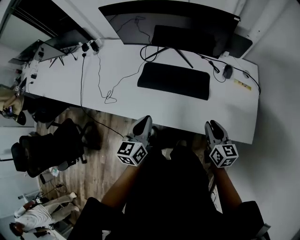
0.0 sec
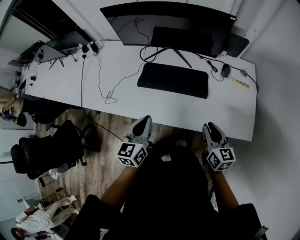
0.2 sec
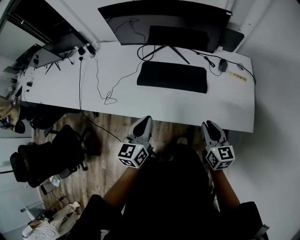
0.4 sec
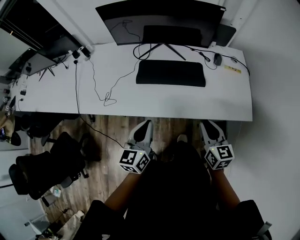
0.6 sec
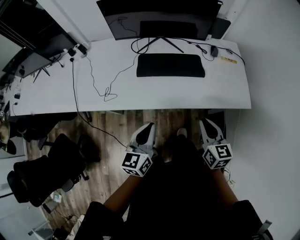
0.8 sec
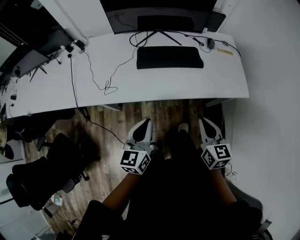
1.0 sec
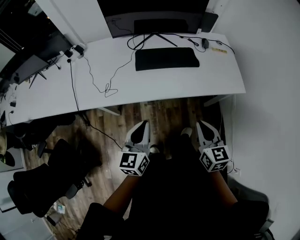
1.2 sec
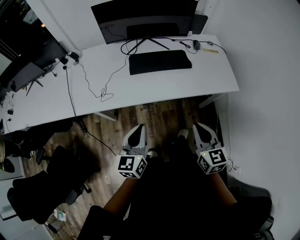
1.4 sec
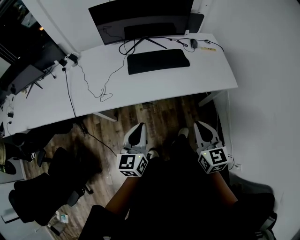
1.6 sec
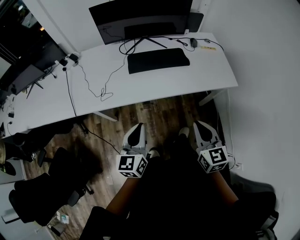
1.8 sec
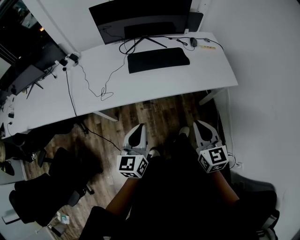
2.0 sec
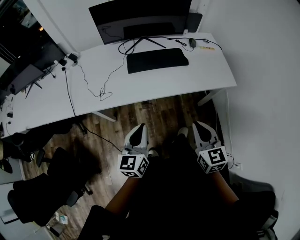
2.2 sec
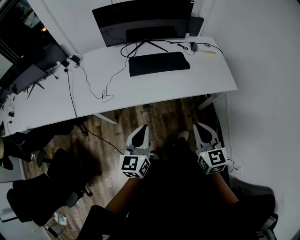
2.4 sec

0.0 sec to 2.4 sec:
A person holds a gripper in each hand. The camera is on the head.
0.0 sec to 1.2 sec: The grippers both shift backward and to the left by approximately 30 cm.
1.2 sec to 2.4 sec: The right gripper goes roughly 5 cm backward.

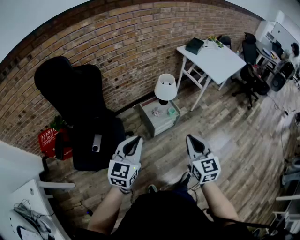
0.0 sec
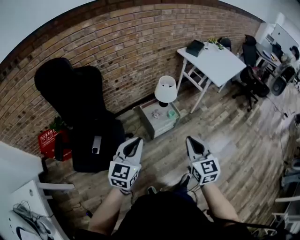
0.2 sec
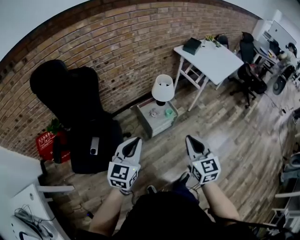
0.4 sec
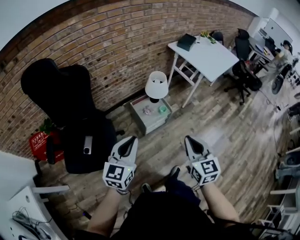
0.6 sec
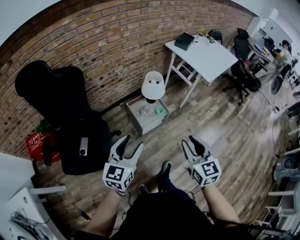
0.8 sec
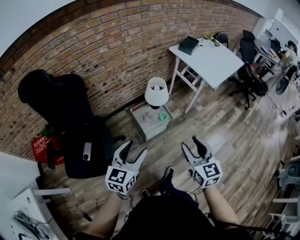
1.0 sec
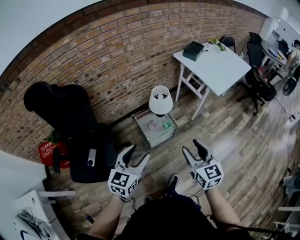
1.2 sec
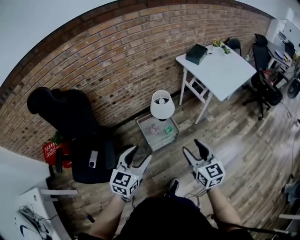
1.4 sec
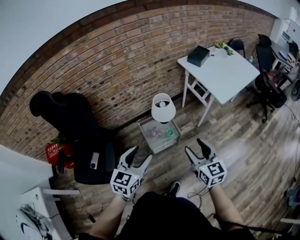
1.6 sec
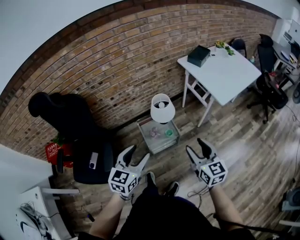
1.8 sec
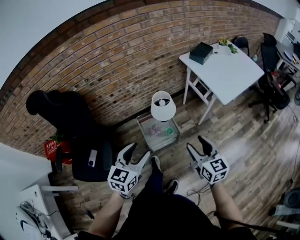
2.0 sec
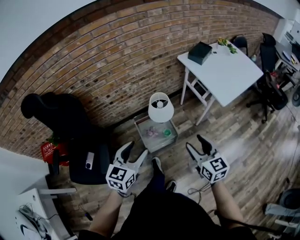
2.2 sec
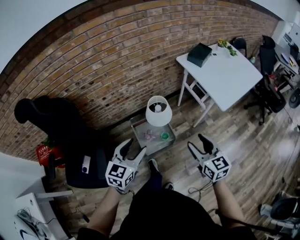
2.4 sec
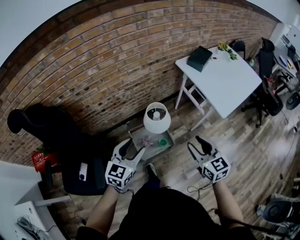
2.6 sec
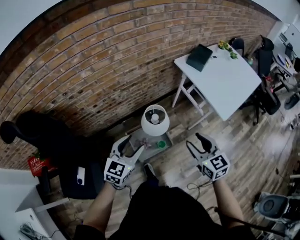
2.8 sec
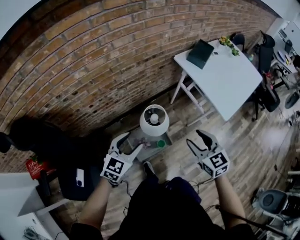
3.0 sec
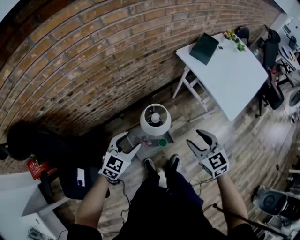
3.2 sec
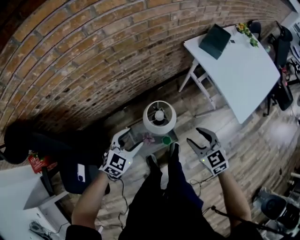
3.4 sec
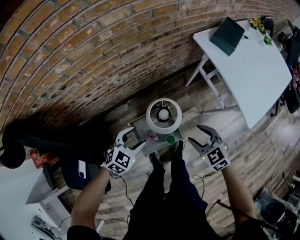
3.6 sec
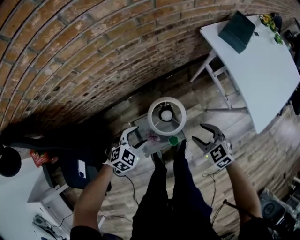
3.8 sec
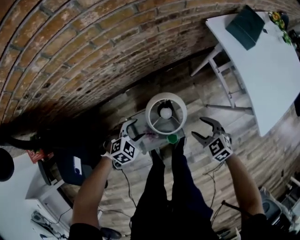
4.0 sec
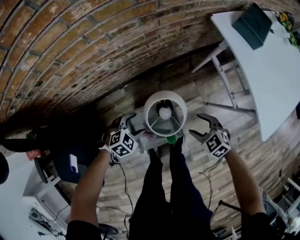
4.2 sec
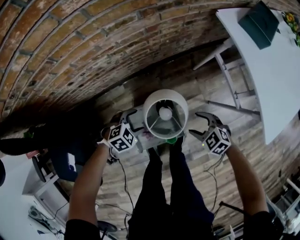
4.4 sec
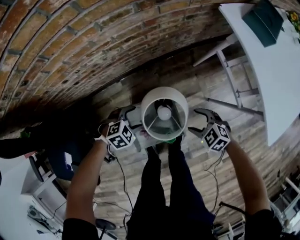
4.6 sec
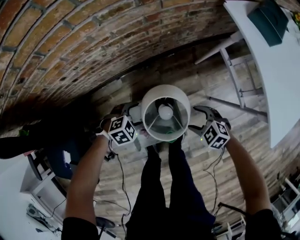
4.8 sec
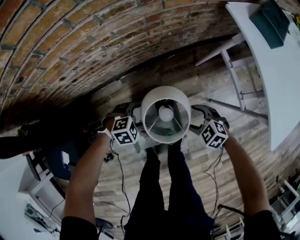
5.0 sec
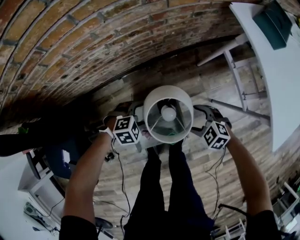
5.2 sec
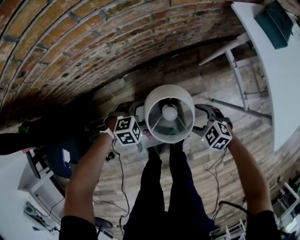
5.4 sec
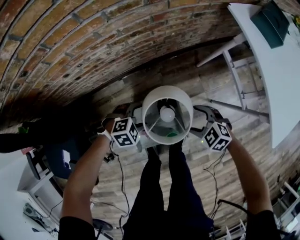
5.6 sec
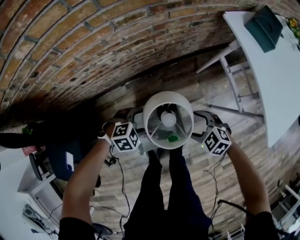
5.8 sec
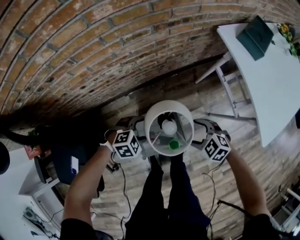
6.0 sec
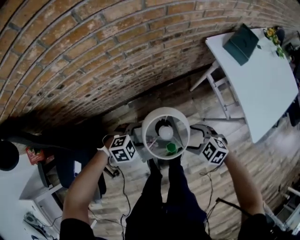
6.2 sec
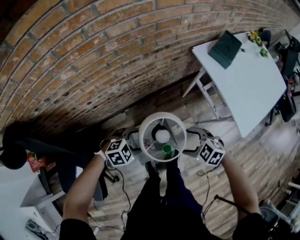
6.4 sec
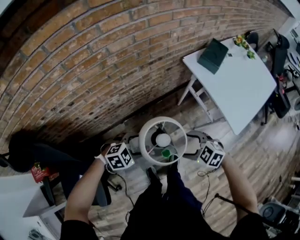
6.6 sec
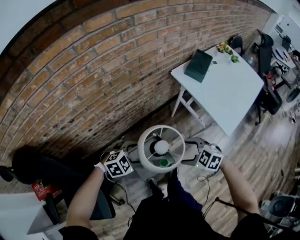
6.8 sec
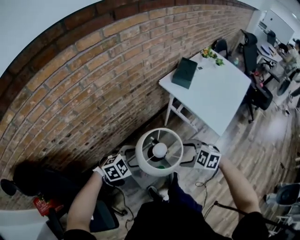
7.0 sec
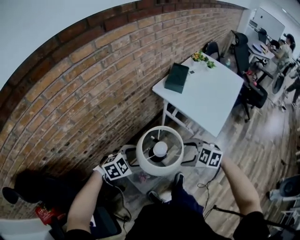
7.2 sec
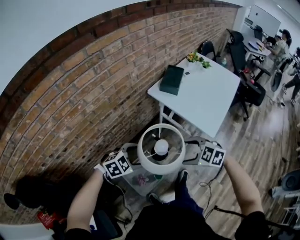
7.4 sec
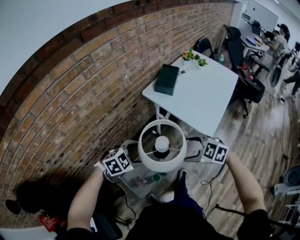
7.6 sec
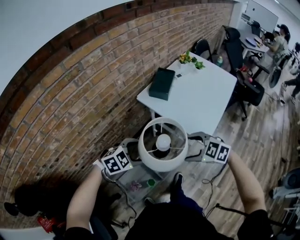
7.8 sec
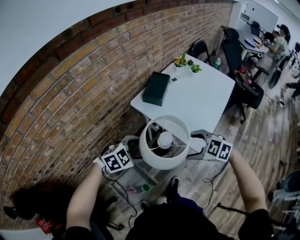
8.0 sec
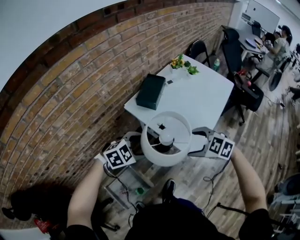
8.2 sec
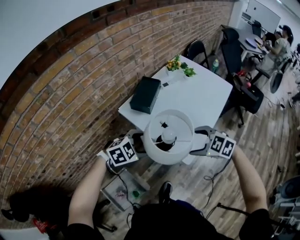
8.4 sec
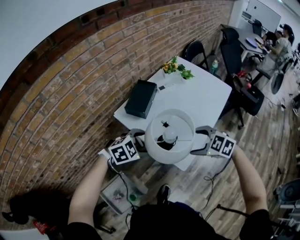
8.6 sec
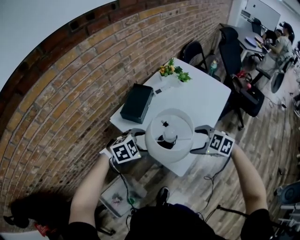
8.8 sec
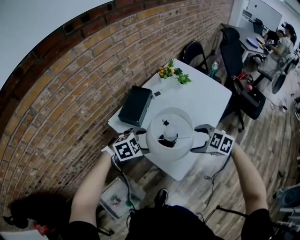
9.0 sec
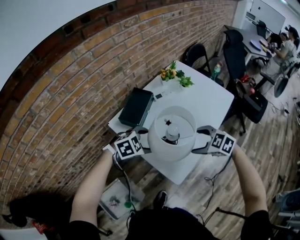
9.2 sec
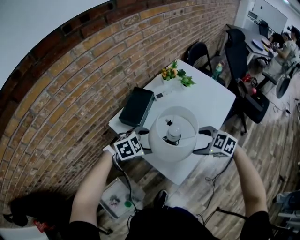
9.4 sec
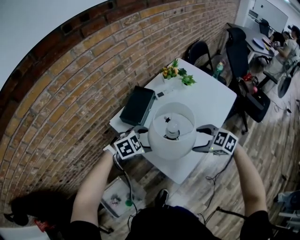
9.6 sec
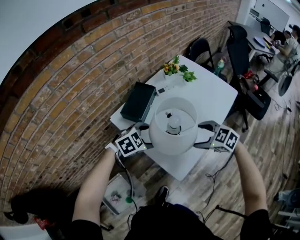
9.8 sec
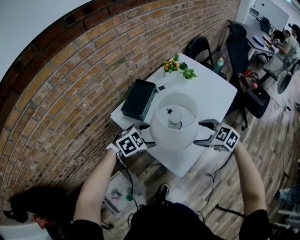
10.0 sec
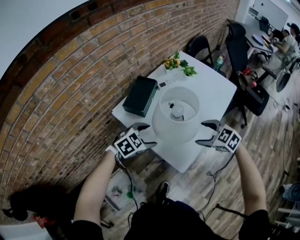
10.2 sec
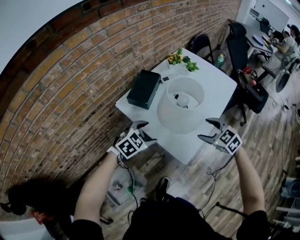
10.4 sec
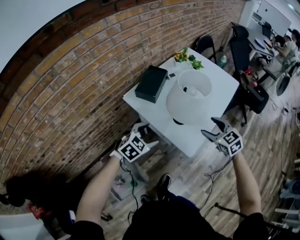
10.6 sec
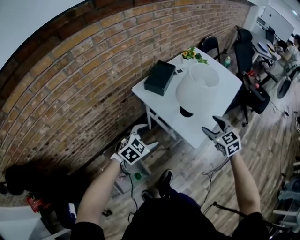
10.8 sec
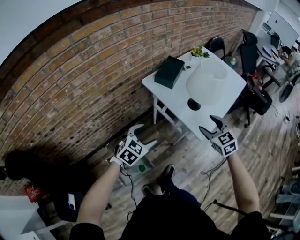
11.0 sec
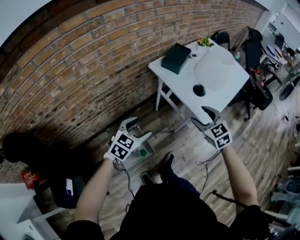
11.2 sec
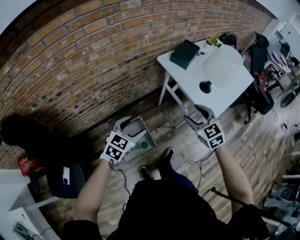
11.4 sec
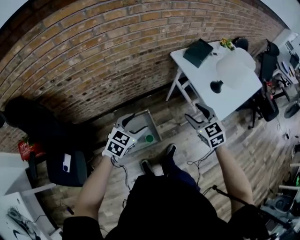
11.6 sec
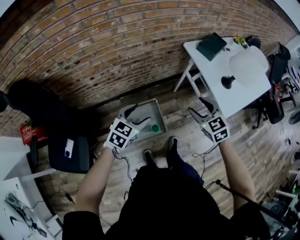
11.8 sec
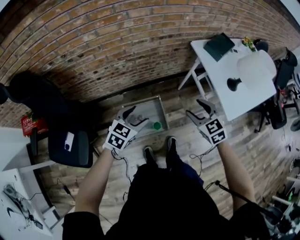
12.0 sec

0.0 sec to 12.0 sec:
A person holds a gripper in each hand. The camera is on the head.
0.0 sec to 1.6 sec: Both grippers travel together forward and to the right, some 25 cm. The right gripper opens. Meanwhile the left gripper opens up.
1.6 sec to 3.0 sec: The grippers both shift forward by approximately 30 cm.
3.0 sec to 4.4 sec: Both grippers travel together downward, some 40 cm. The left gripper tilts its fingers roughly 40 degrees downward. Meanwhile the right gripper changes its angle by some 50 degrees.
4.4 sec to 6.0 sec: Both grippers travel together upward, about 5 cm.
6.0 sec to 7.6 sec: The grippers both shift upward by about 35 cm. The right gripper turns by roughly 20 degrees. Meanwhile the left gripper turns by approximately 20 degrees.
7.6 sec to 9.0 sec: The pair of grippers is taken approximately 40 cm.
9.0 sec to 10.4 sec: The left gripper ends up about 5 cm from where it was.
10.4 sec to 12.0 sec: Both grippers are carried approximately 50 cm. The left gripper rotates roughly 50 degrees.

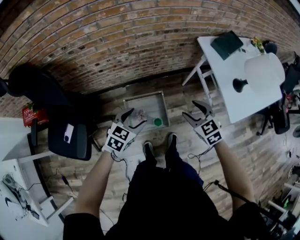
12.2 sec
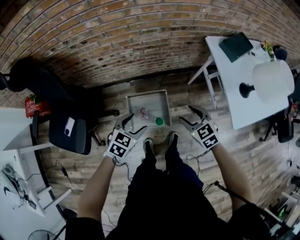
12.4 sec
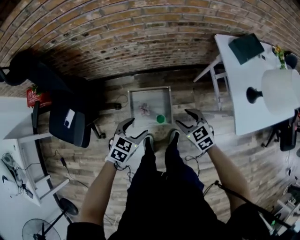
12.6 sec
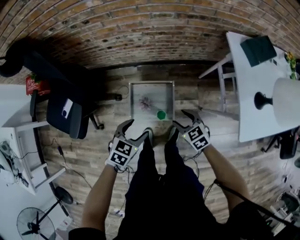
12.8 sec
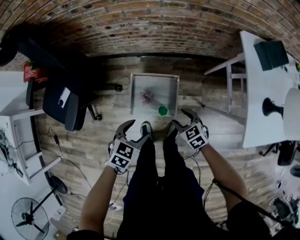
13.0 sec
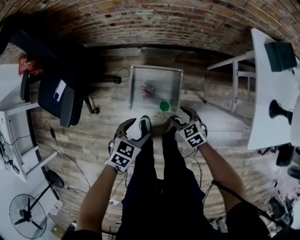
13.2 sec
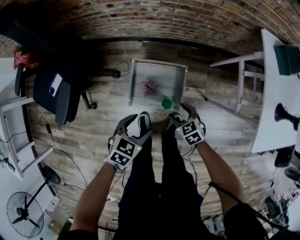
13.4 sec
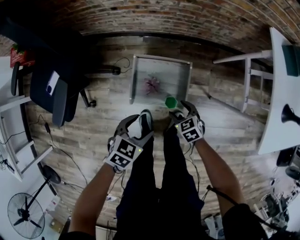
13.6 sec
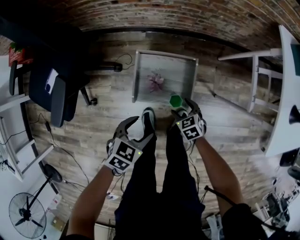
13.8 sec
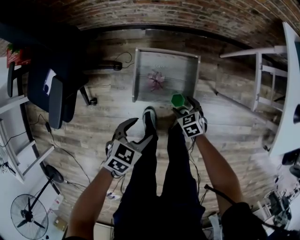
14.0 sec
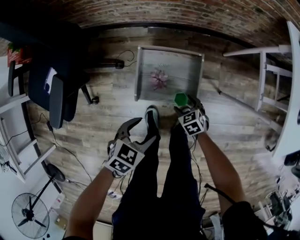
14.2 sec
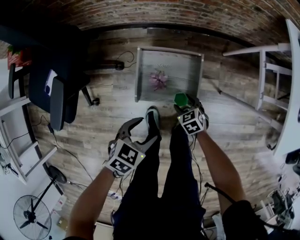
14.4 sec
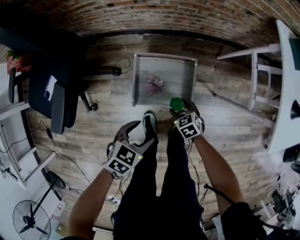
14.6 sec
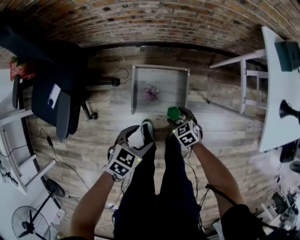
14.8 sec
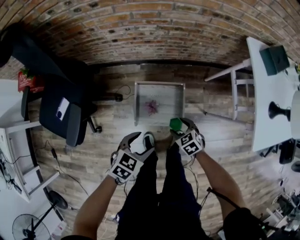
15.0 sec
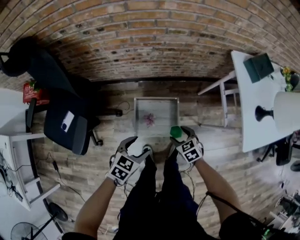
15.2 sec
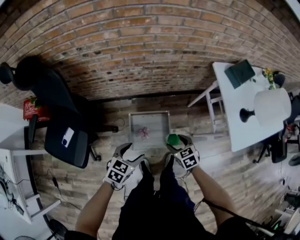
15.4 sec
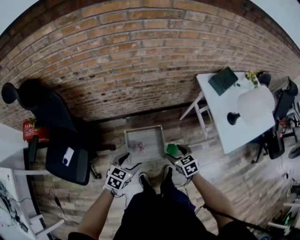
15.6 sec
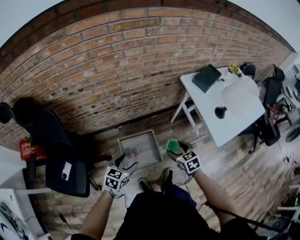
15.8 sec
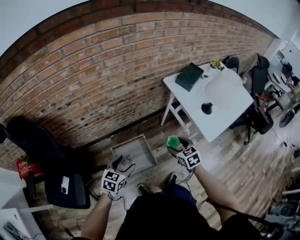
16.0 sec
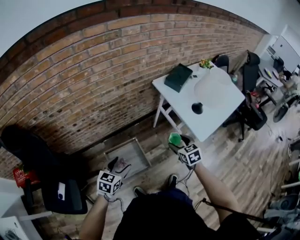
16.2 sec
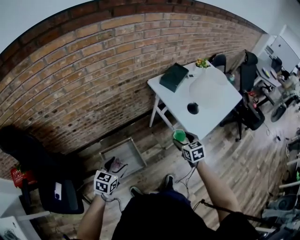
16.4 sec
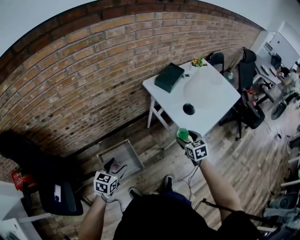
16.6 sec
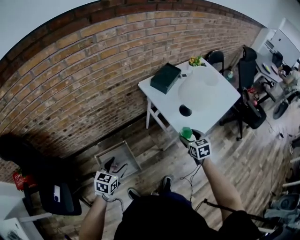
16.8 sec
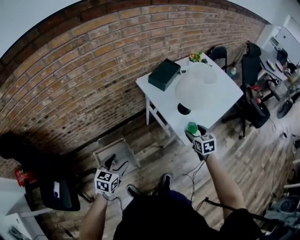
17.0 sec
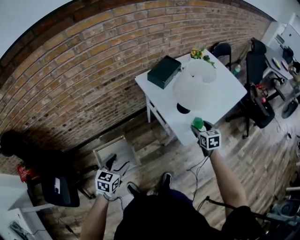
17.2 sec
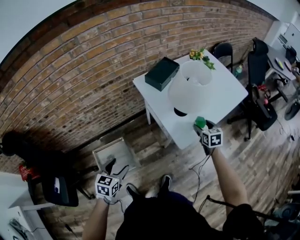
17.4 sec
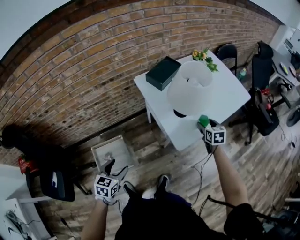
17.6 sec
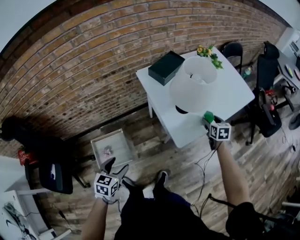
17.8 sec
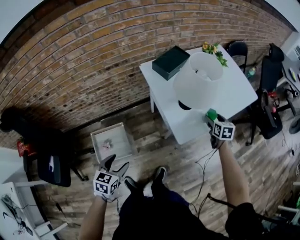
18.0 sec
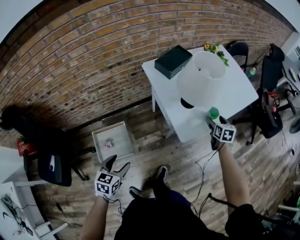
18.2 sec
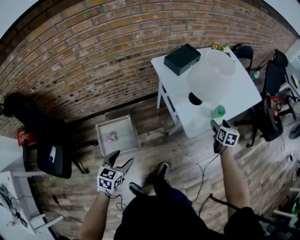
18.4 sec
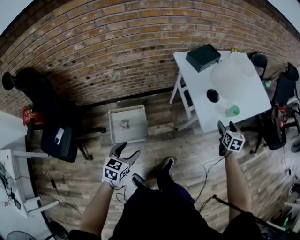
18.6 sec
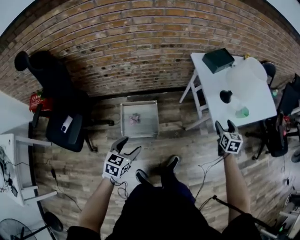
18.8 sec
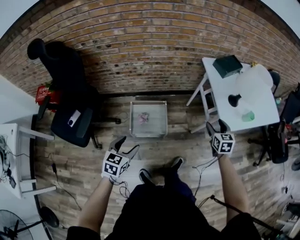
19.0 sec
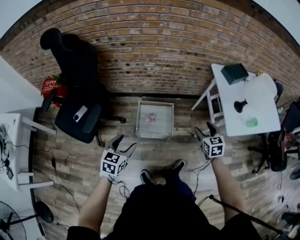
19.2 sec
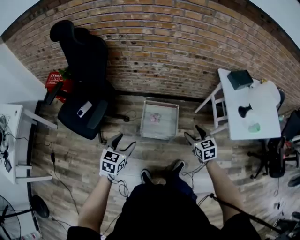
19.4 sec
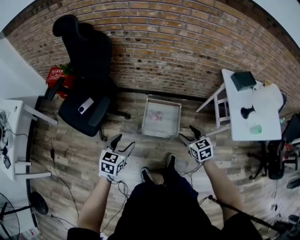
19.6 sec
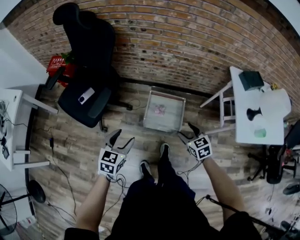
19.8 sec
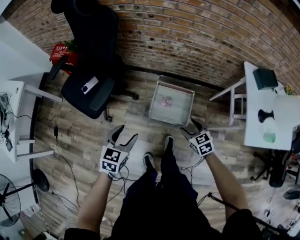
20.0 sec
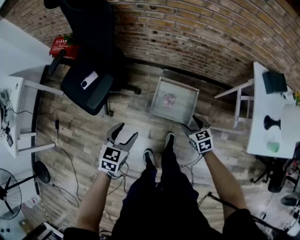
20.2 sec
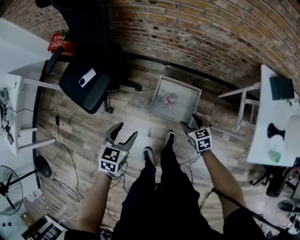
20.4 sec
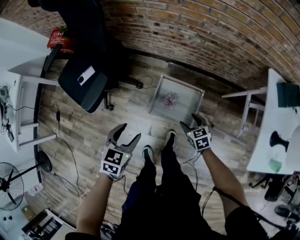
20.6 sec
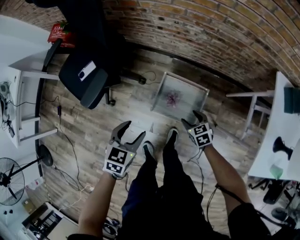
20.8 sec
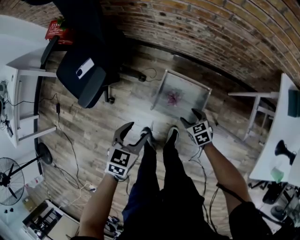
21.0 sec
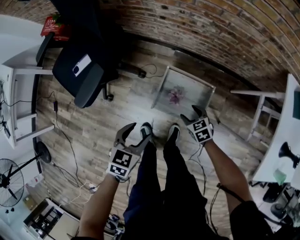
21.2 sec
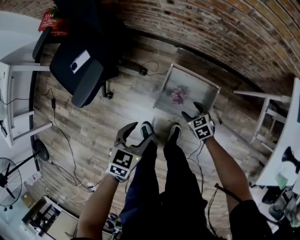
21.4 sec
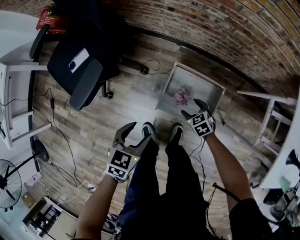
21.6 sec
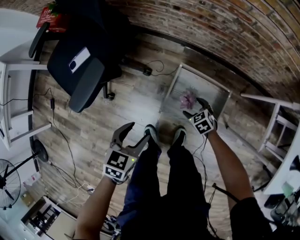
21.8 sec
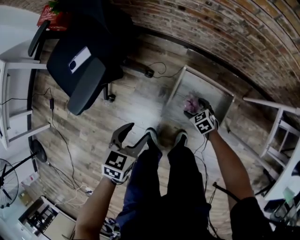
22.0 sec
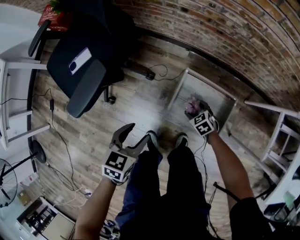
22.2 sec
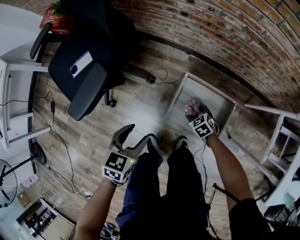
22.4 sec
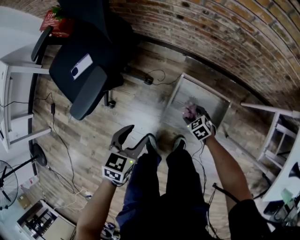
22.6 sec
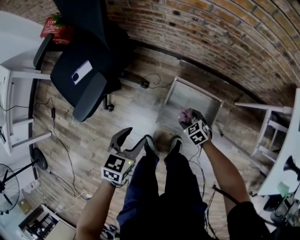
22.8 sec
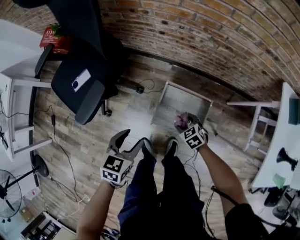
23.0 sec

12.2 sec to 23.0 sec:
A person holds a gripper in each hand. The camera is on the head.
12.2 sec to 13.8 sec: The left gripper travels downward by about 25 cm, and swivels roughly 20 degrees. Meanwhile the right gripper heads downward, covering some 40 cm, and swivels approximately 30 degrees.
13.8 sec to 15.2 sec: The two grippers go approximately 20 cm upward.
15.2 sec to 16.8 sec: The left gripper moves roughly 25 cm, while the right gripper changes place by about 50 cm, and turns by roughly 50 degrees.
16.8 sec to 18.4 sec: The left gripper is displaced to the right and backward by about 15 cm. Meanwhile the right gripper heads to the right and forward, covering roughly 25 cm.
18.4 sec to 20.0 sec: The right gripper changes place by some 70 cm, and changes its angle by approximately 70 degrees. The left gripper changes place by roughly 40 cm, and turns by some 30 degrees.
20.0 sec to 21.4 sec: The left gripper travels downward, forward and to the right by about 25 cm. Meanwhile the right gripper travels downward and forward by approximately 35 cm.
21.4 sec to 23.0 sec: The right gripper moves some 15 cm downward and comes back. The left gripper moves approximately 10 cm downward and comes back.
